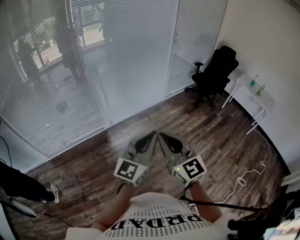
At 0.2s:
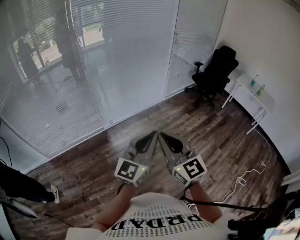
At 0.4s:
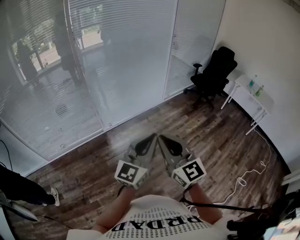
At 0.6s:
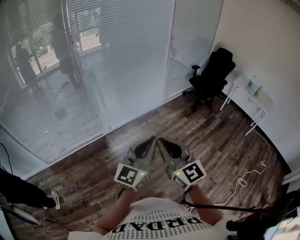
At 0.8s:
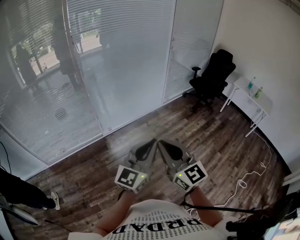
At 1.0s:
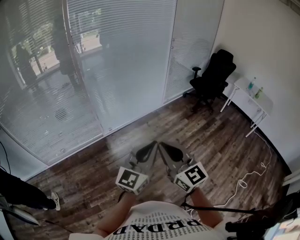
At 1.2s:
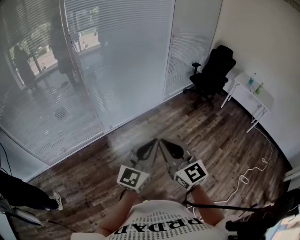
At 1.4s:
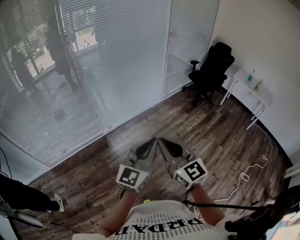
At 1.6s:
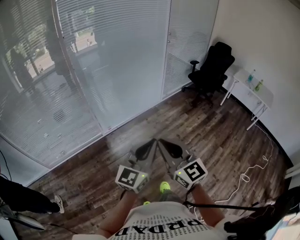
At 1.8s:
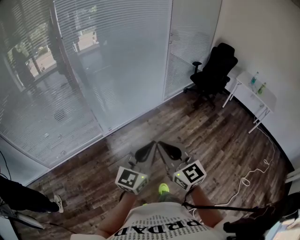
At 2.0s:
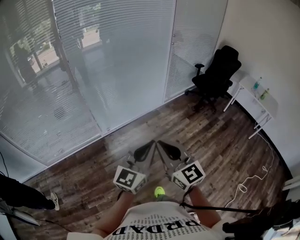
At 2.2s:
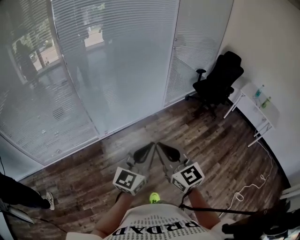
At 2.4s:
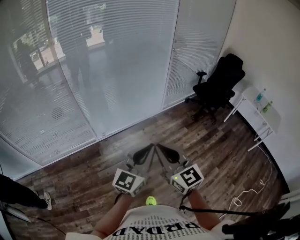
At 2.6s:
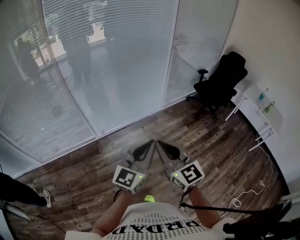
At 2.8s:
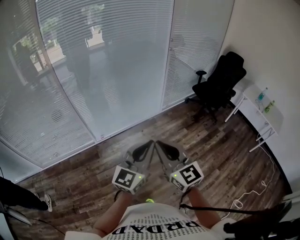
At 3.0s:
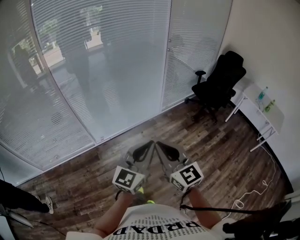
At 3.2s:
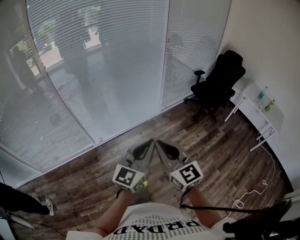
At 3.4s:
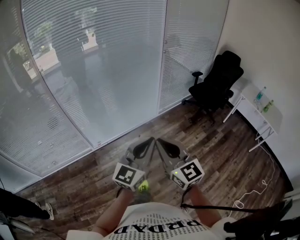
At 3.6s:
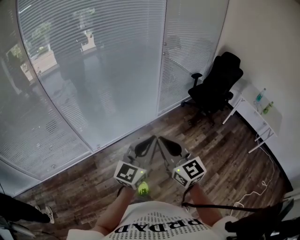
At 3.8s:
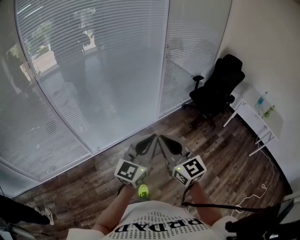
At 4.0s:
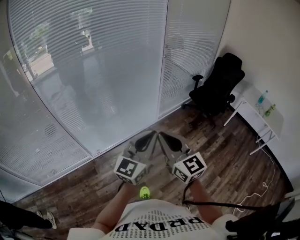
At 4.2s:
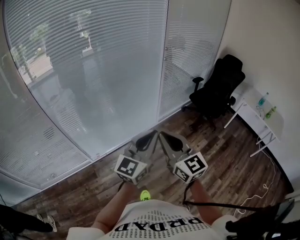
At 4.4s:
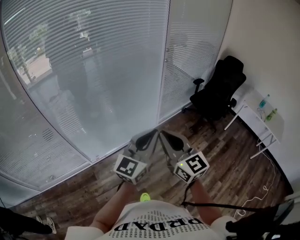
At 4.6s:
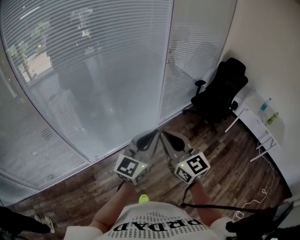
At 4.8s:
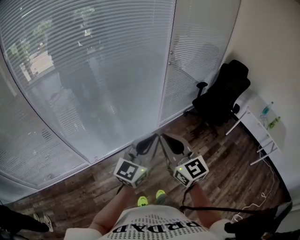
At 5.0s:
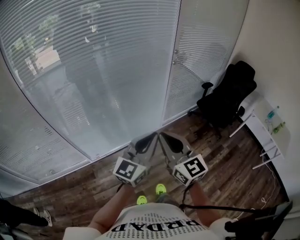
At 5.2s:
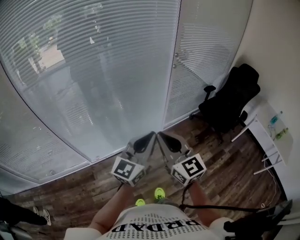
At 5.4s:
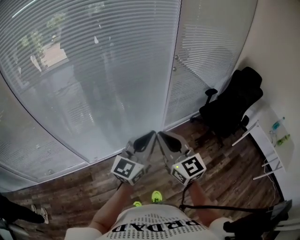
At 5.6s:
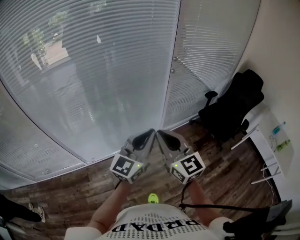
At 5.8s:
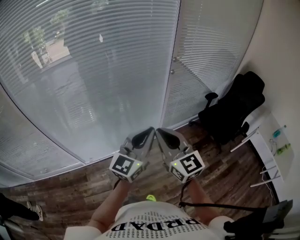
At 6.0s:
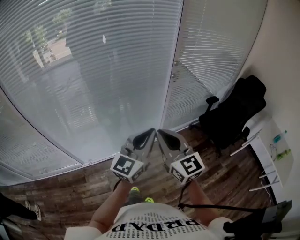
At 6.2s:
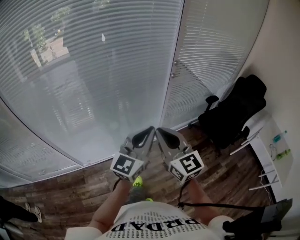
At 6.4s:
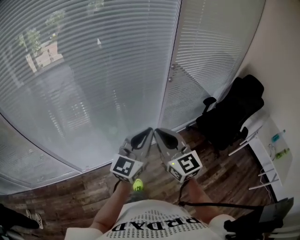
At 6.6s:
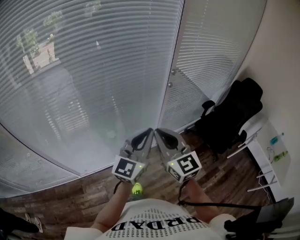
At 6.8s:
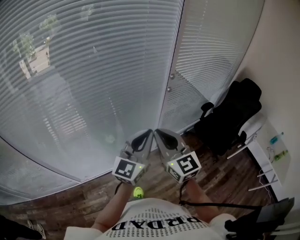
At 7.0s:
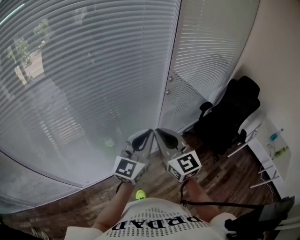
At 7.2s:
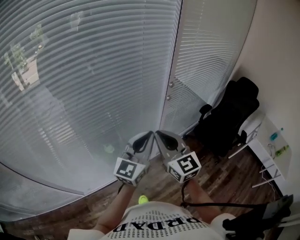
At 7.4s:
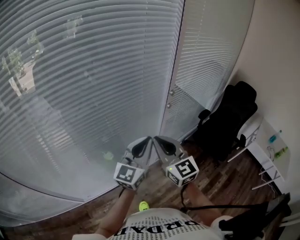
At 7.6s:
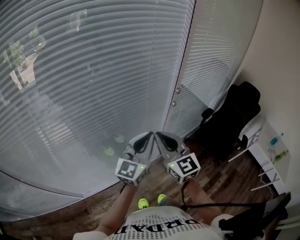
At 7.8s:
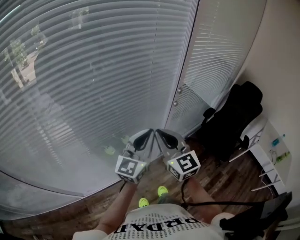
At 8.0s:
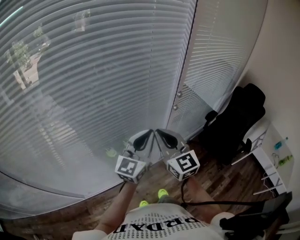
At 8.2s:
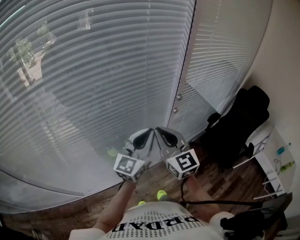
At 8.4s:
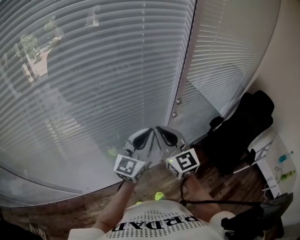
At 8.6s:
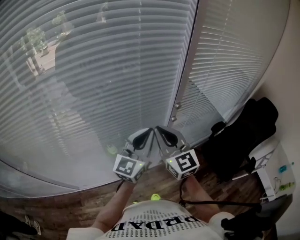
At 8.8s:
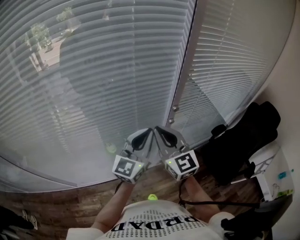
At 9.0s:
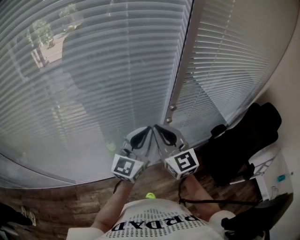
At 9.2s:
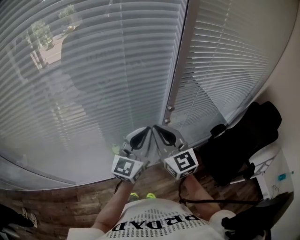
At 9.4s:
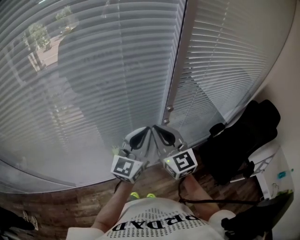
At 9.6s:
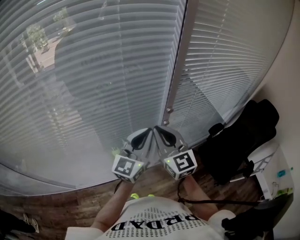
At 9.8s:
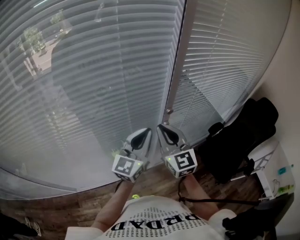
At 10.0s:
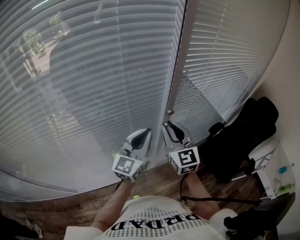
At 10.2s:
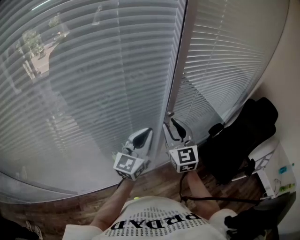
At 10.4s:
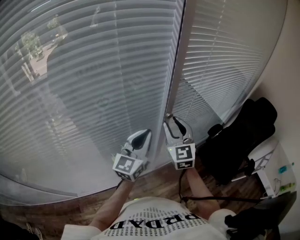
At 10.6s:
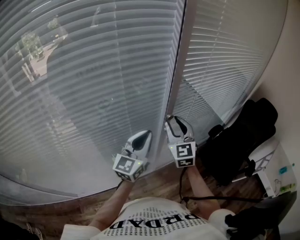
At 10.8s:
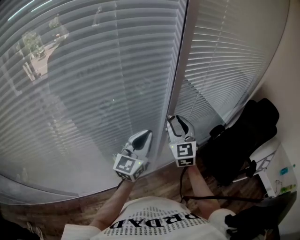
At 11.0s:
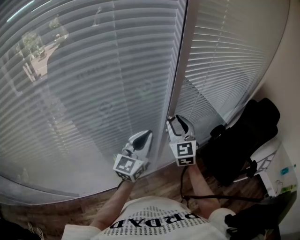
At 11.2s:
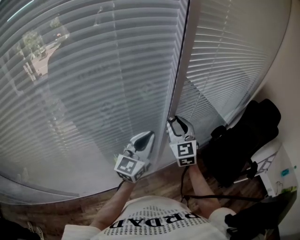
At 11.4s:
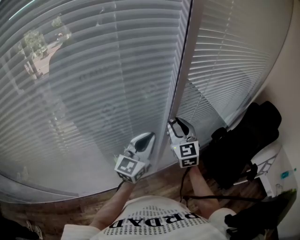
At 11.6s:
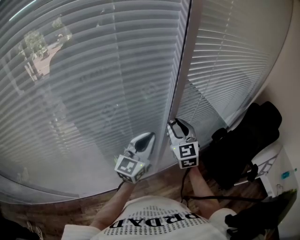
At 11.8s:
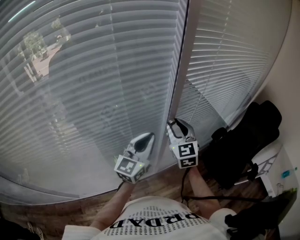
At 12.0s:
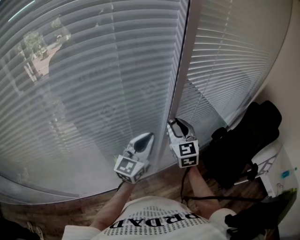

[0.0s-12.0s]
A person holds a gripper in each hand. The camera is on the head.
0.0s to 1.6s: The right gripper moves approximately 5 cm; the left gripper moves about 5 cm.
1.6s to 3.0s: Both grippers travel together forward and to the right, roughly 30 cm.
3.0s to 4.4s: The grippers both shift forward by some 30 cm.
4.4s to 6.0s: The two grippers go approximately 30 cm forward and to the right.
6.0s to 7.6s: The grippers both shift forward by about 25 cm.
7.6s to 9.0s: The two grippers go some 15 cm forward and to the right.
9.0s to 10.4s: The left gripper moves roughly 5 cm. The right gripper is displaced forward and to the right by approximately 10 cm, turns by some 30 degrees, and opens its fingers.
10.4s to 12.0s: The grippers move only a little.

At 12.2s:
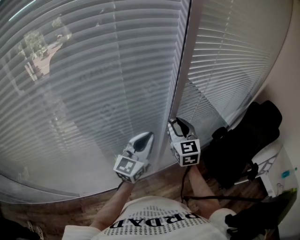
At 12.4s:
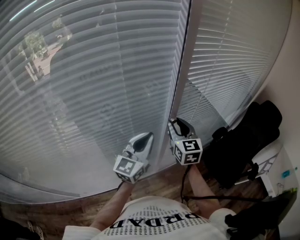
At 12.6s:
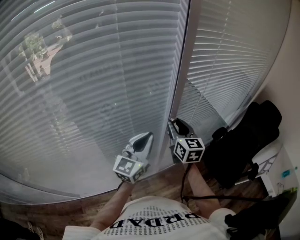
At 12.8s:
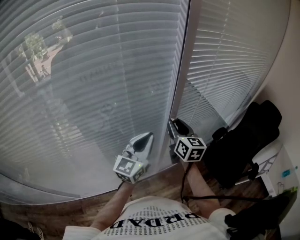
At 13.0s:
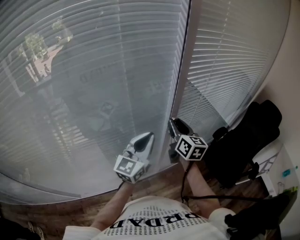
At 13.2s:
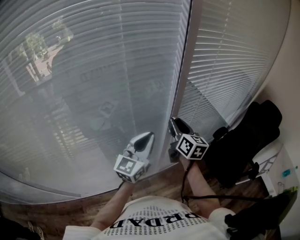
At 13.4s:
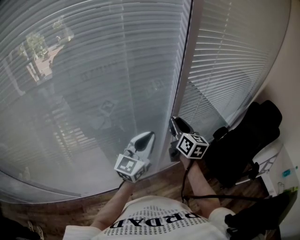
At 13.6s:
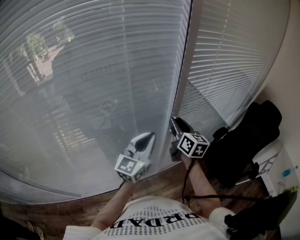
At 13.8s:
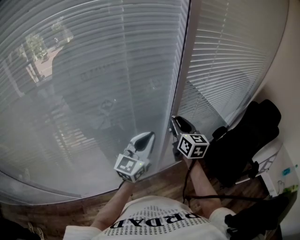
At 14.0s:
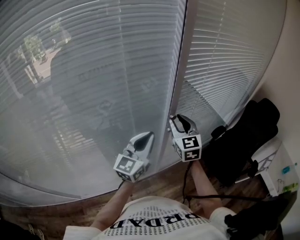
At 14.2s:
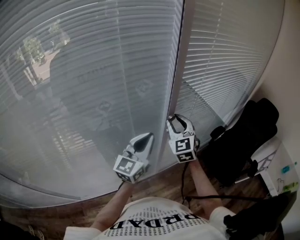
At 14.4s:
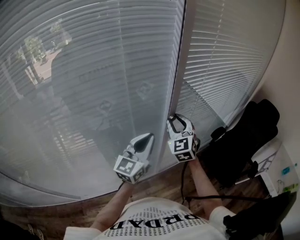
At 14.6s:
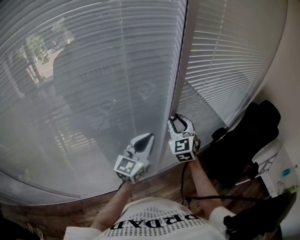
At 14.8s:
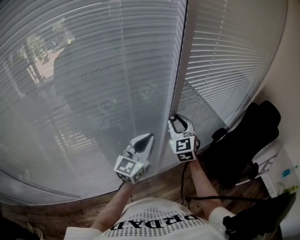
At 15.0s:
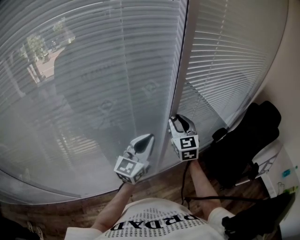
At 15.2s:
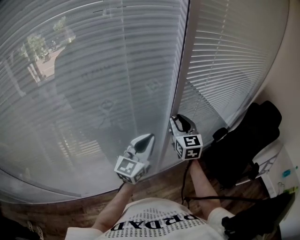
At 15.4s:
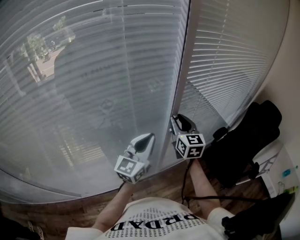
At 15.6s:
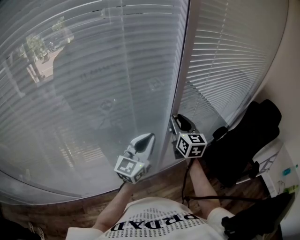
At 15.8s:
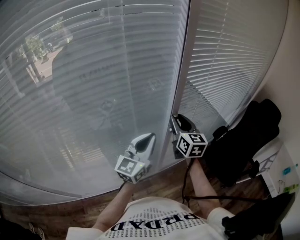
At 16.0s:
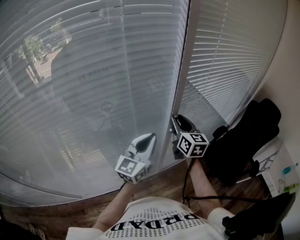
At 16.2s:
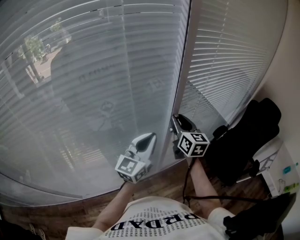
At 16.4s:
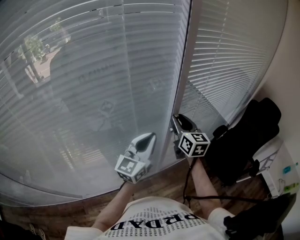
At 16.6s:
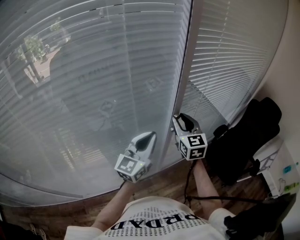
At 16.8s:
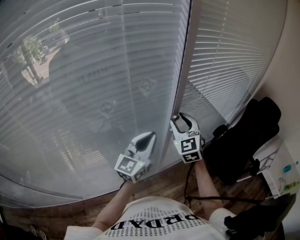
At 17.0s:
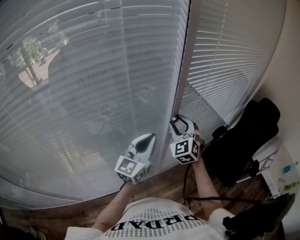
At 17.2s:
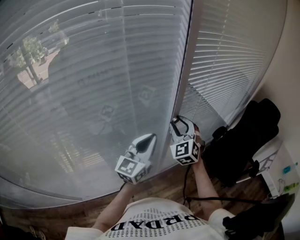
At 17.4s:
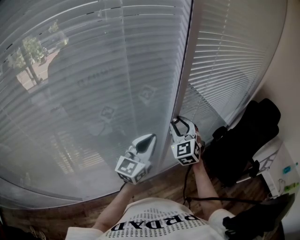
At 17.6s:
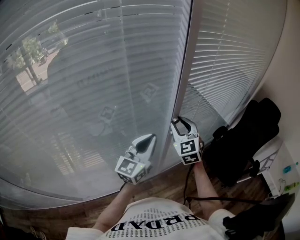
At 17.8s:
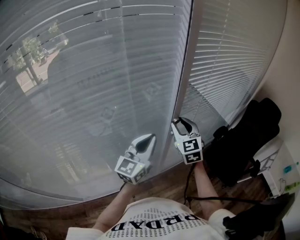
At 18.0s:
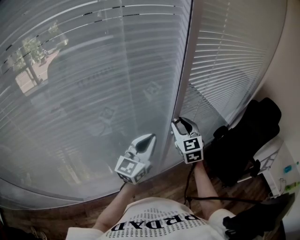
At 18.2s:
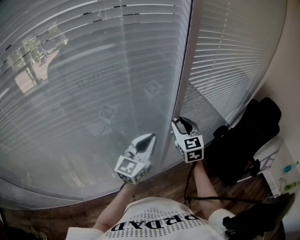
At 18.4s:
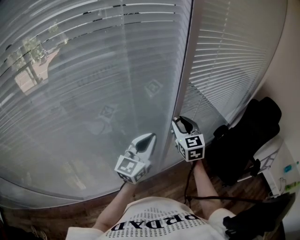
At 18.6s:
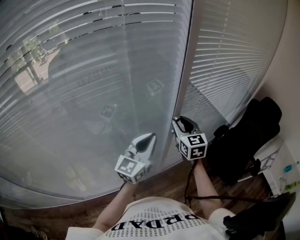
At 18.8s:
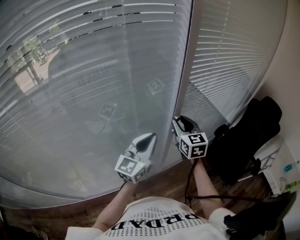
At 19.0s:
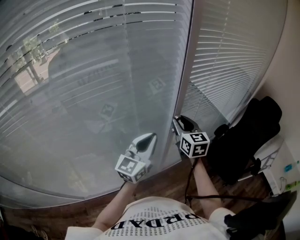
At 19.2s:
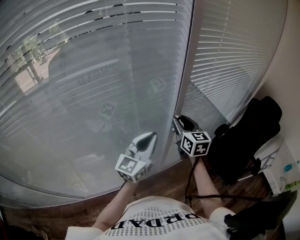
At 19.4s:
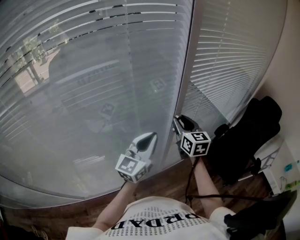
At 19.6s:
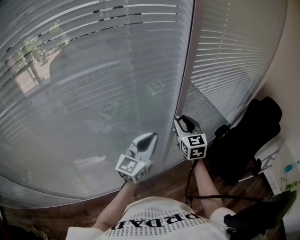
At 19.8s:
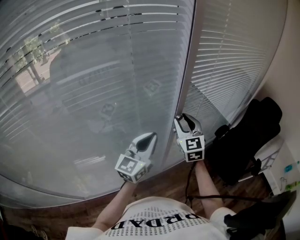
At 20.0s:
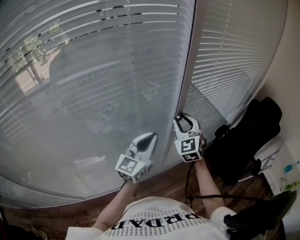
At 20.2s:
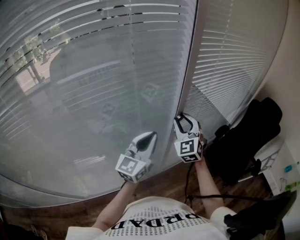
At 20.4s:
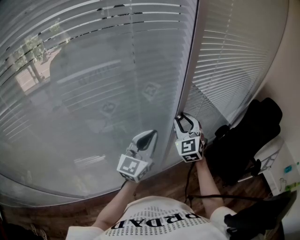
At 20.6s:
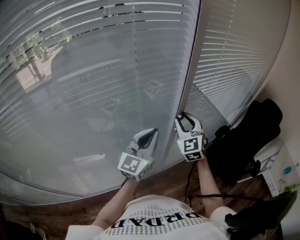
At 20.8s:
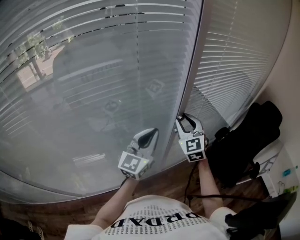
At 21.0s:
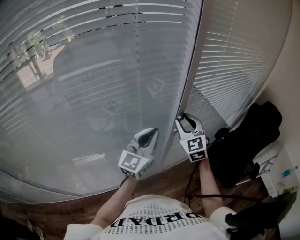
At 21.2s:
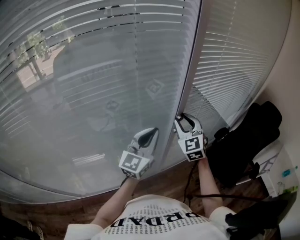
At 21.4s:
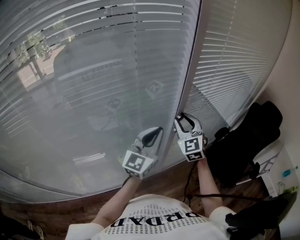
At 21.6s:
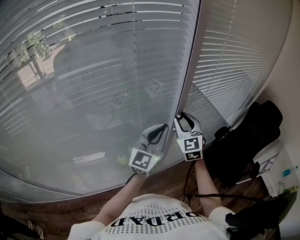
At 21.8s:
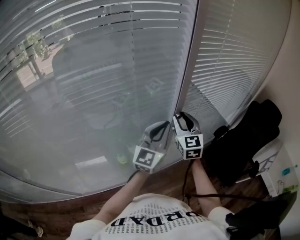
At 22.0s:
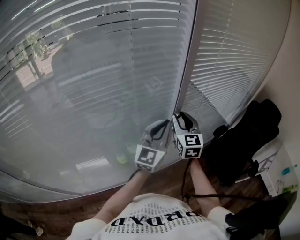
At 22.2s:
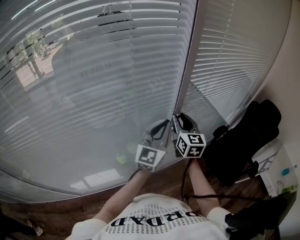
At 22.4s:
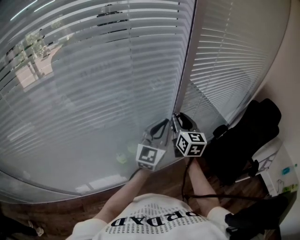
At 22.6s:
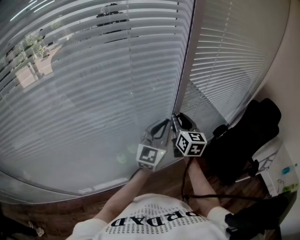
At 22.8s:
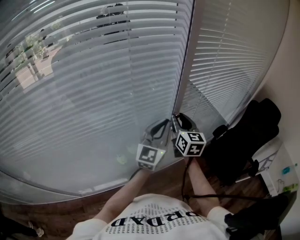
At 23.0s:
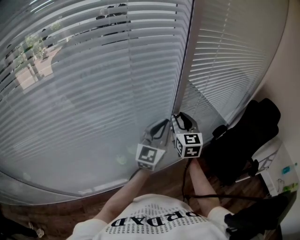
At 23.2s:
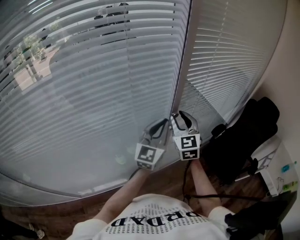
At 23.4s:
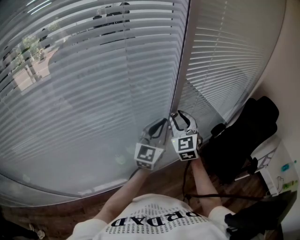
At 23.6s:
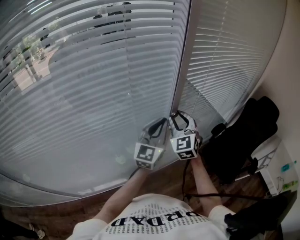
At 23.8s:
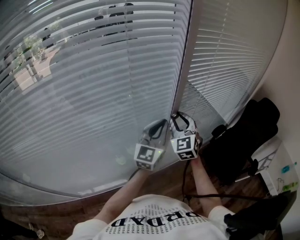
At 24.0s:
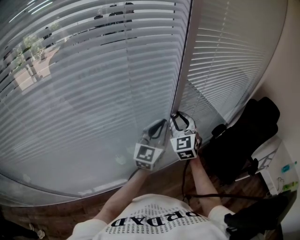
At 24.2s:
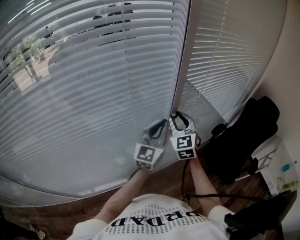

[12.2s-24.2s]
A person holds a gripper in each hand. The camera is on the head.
12.2s to 13.8s: The right gripper rotates roughly 20 degrees.
19.8s to 21.2s: There are only small adjustments of the grippers.
21.2s to 22.6s: The left gripper is displaced to the right by approximately 5 cm. Meanwhile the right gripper rotates around the line of its fingers by about 40 degrees, clockwise from behind.
22.6s to 24.2s: The right gripper changes its angle by roughly 30 degrees.
